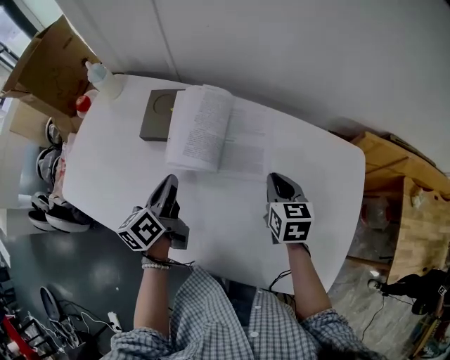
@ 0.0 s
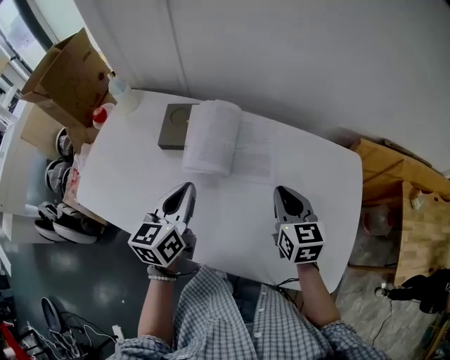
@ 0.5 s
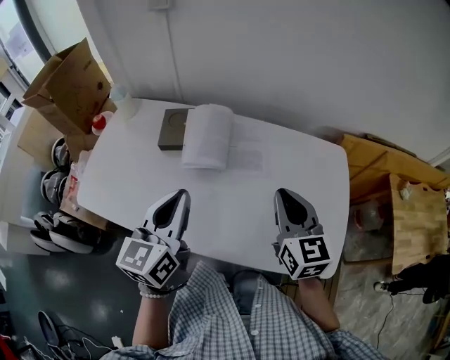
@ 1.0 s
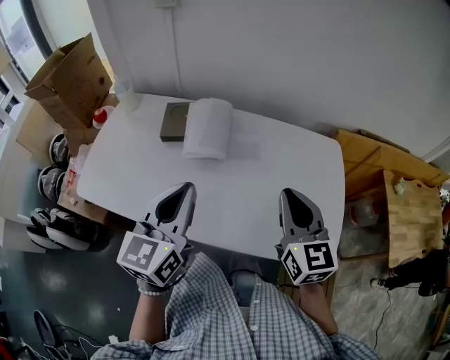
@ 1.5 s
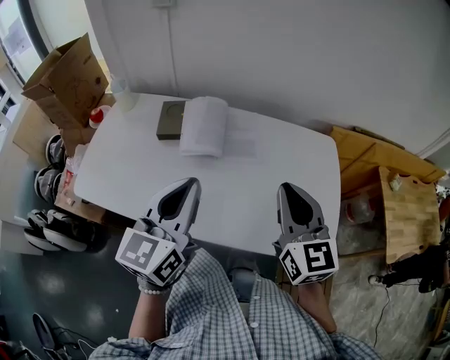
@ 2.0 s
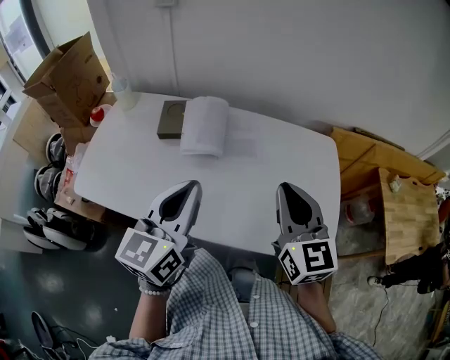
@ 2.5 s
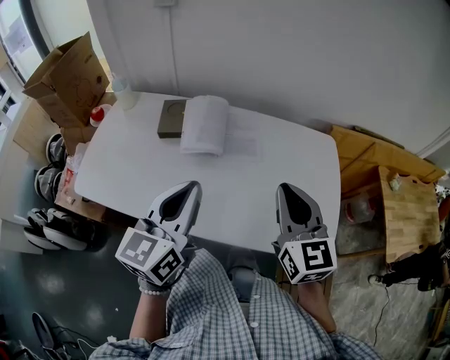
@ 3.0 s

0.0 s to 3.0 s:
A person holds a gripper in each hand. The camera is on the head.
0.0 to 1.5 s: Both grippers move upward and backward, about 25 cm. The left gripper changes its angle by about 40 degrees, while the right gripper changes its angle by about 30 degrees.
1.5 to 3.0 s: The grippers move only a little.

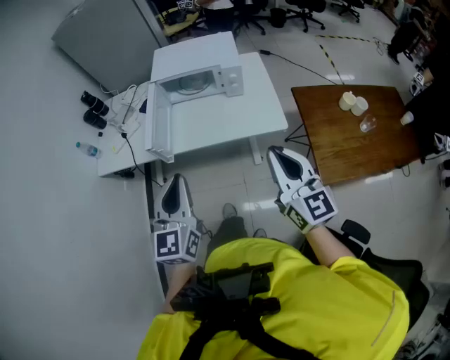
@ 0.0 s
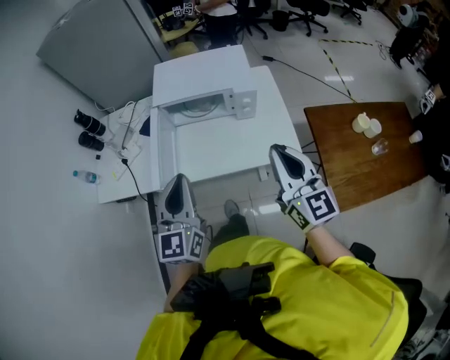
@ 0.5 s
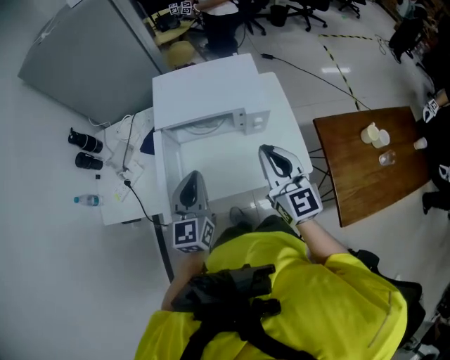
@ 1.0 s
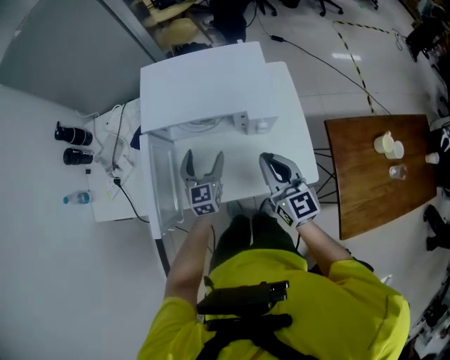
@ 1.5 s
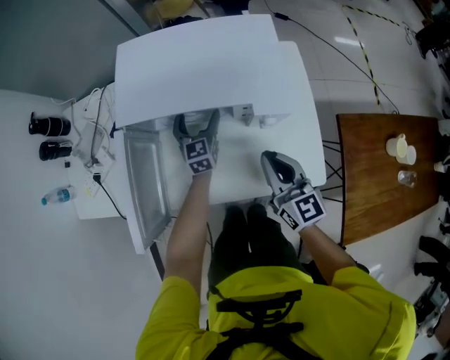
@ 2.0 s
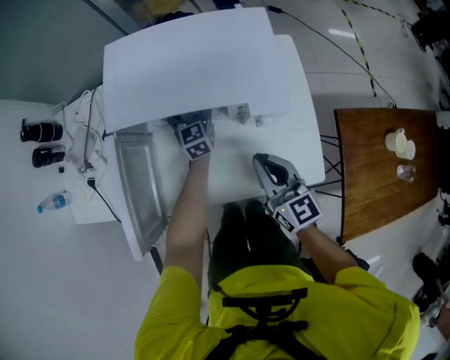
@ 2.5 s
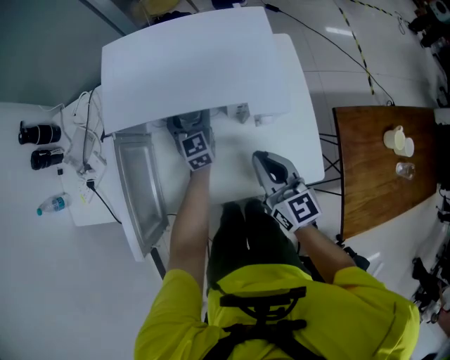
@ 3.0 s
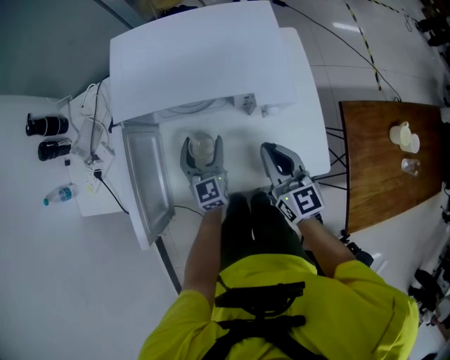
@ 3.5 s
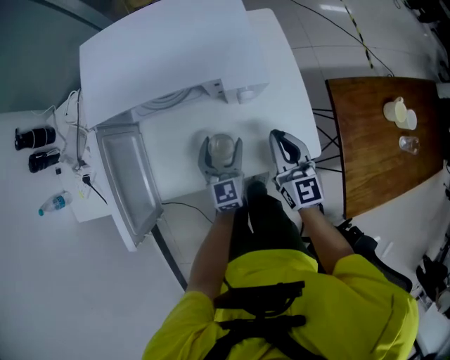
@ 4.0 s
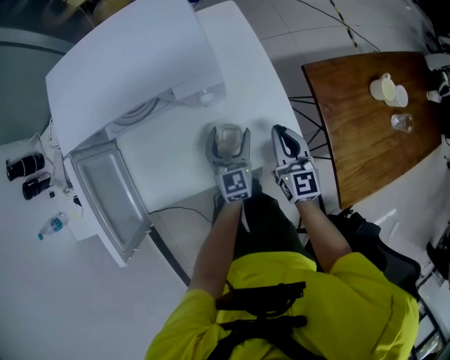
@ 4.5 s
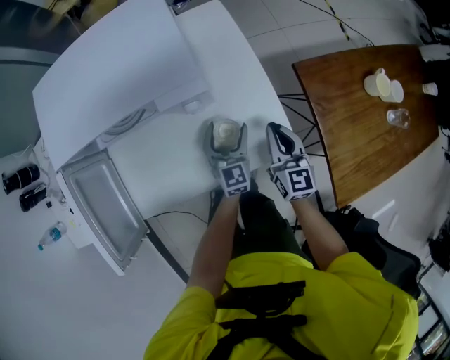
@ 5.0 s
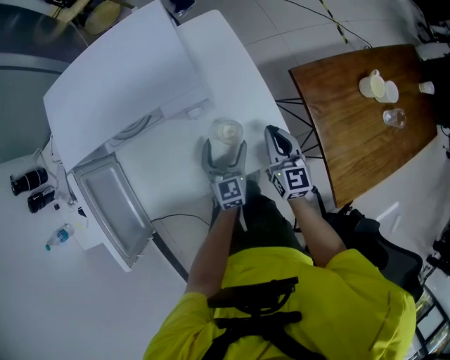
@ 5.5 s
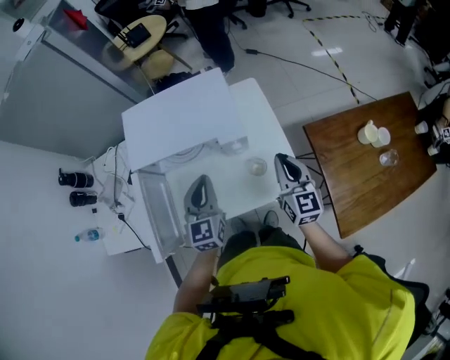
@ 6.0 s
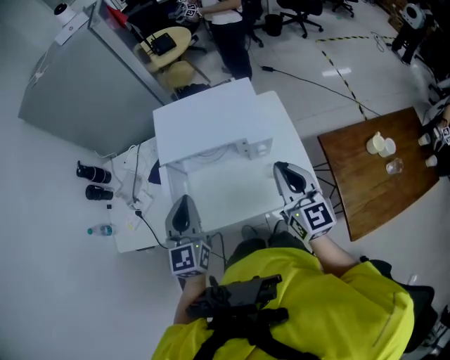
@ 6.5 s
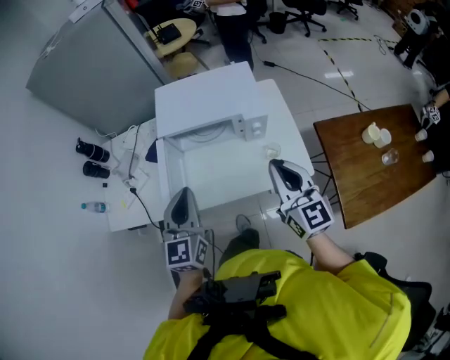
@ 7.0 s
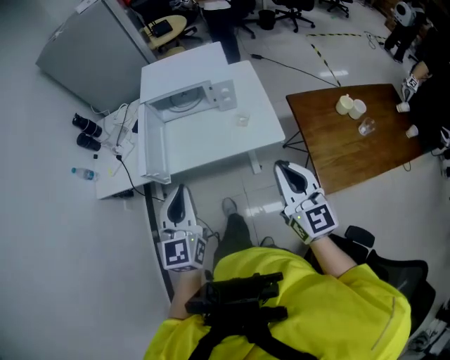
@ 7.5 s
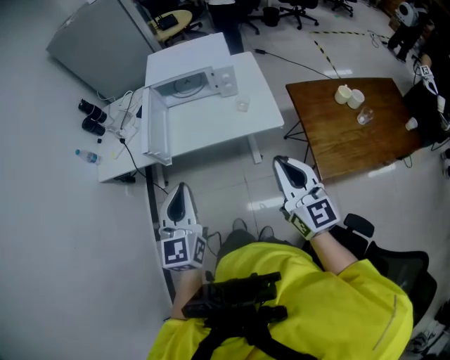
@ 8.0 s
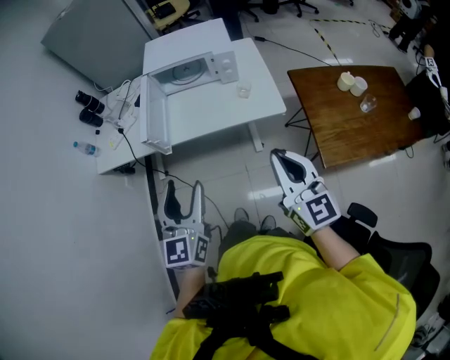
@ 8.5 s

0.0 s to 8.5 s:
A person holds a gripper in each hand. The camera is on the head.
0.0 to 2.0 s: The two grippers travel together, forward, some 50 cm. Both grippers travel together downward, approximately 30 cm. The left gripper opens.
2.0 to 4.0 s: The right gripper is displaced to the right and downward by about 10 cm, while the left gripper goes some 20 cm backward.
4.0 to 6.5 s: The left gripper moves upward and to the left, approximately 40 cm, and closes. Meanwhile the right gripper moves upward, approximately 30 cm.
6.5 to 8.5 s: Both grippers are carried backward, about 40 cm. The left gripper opens.

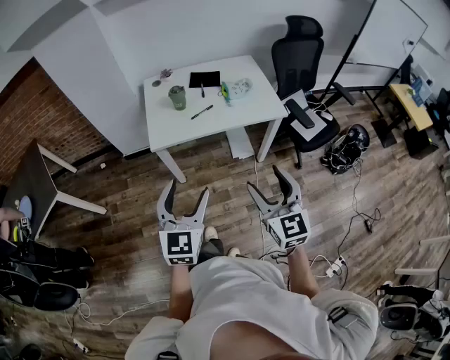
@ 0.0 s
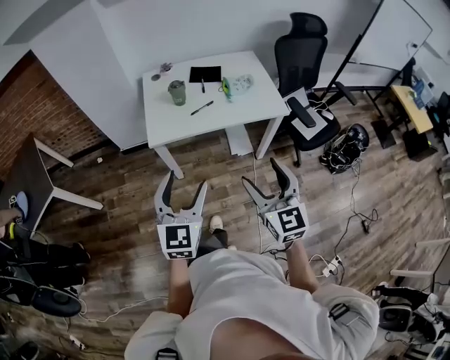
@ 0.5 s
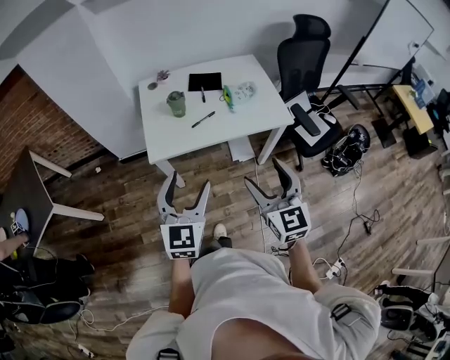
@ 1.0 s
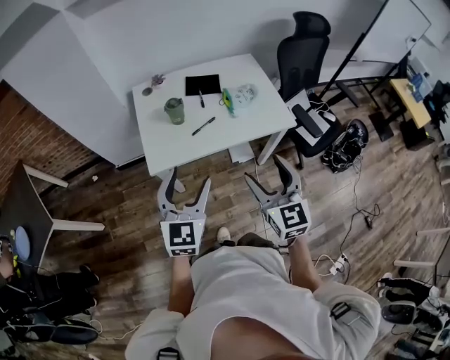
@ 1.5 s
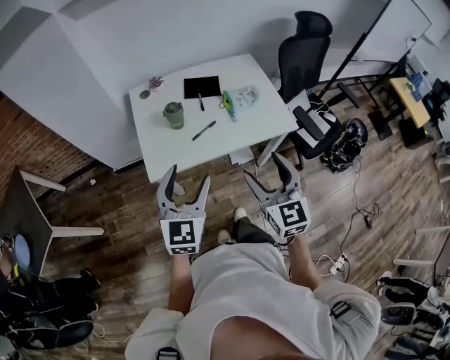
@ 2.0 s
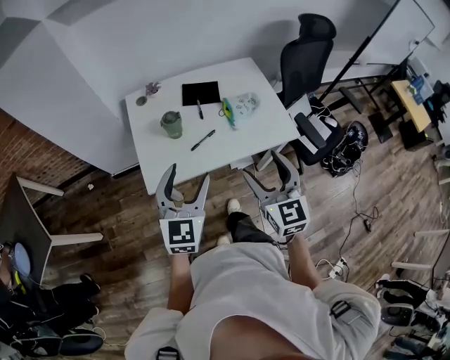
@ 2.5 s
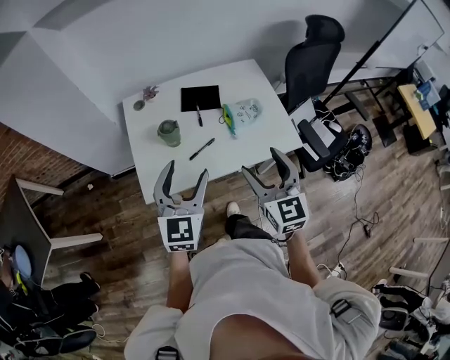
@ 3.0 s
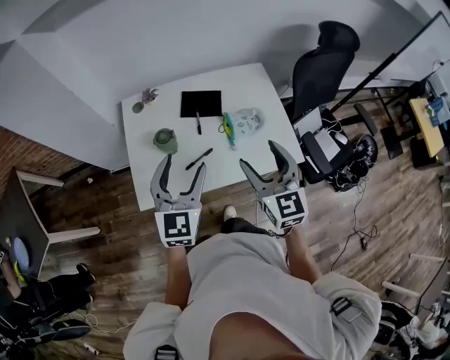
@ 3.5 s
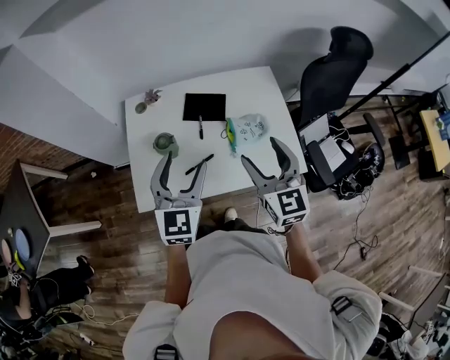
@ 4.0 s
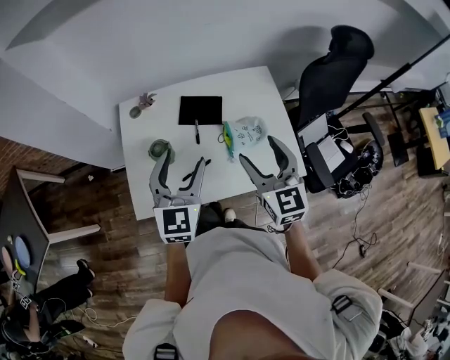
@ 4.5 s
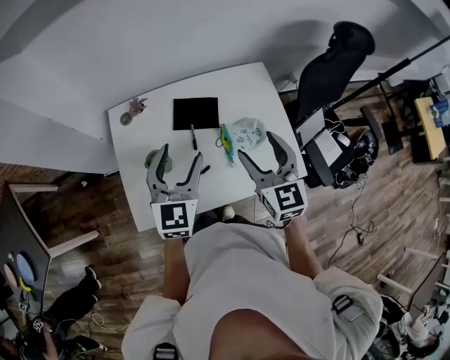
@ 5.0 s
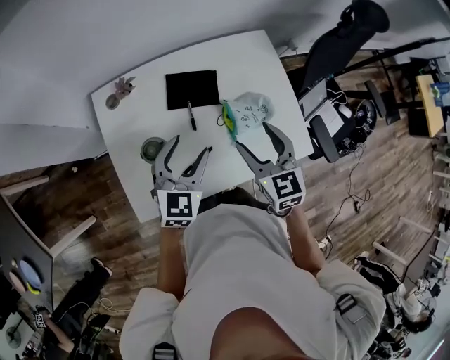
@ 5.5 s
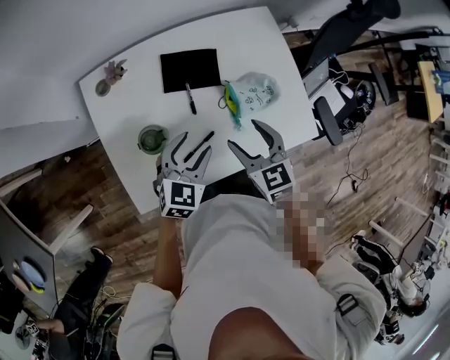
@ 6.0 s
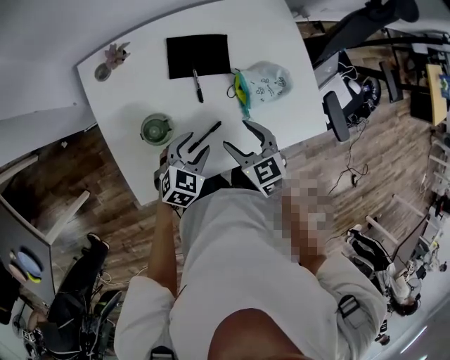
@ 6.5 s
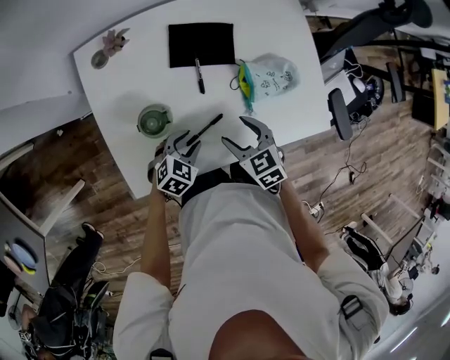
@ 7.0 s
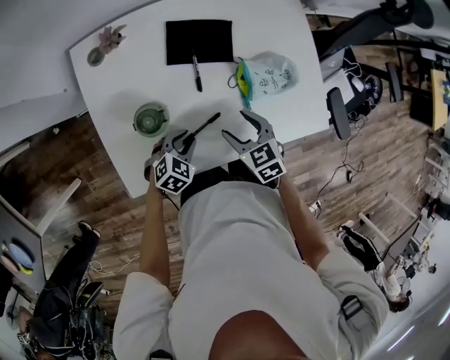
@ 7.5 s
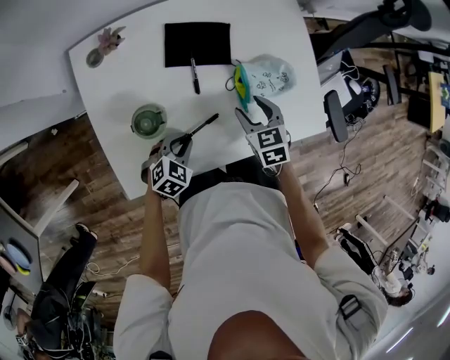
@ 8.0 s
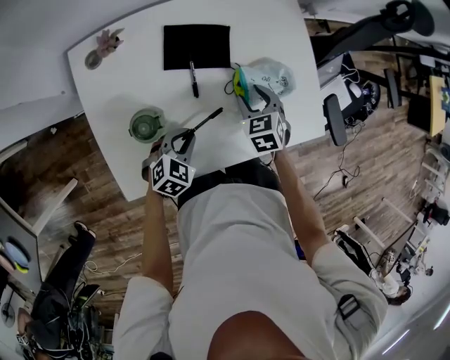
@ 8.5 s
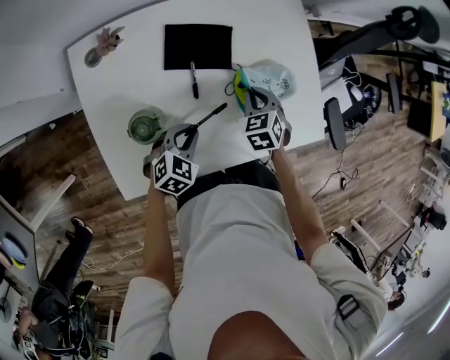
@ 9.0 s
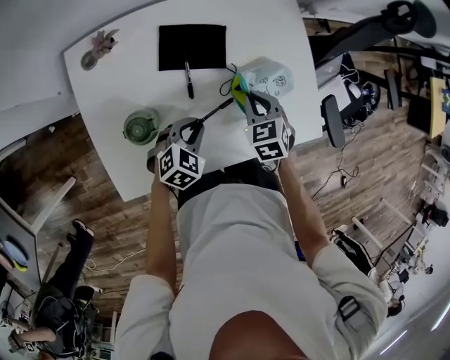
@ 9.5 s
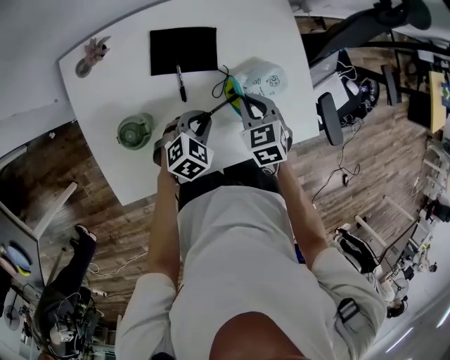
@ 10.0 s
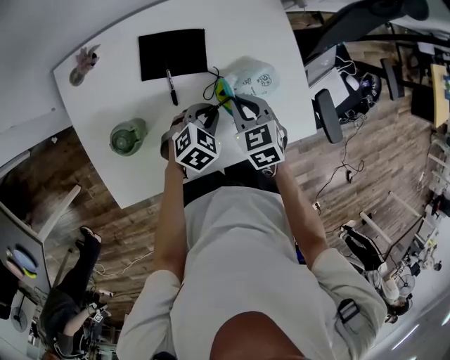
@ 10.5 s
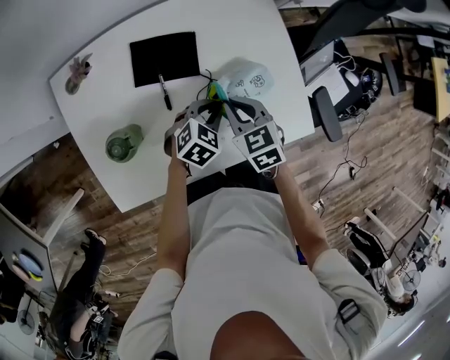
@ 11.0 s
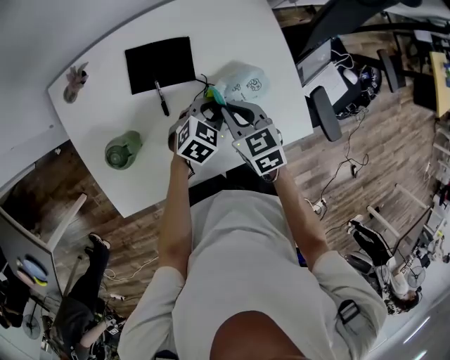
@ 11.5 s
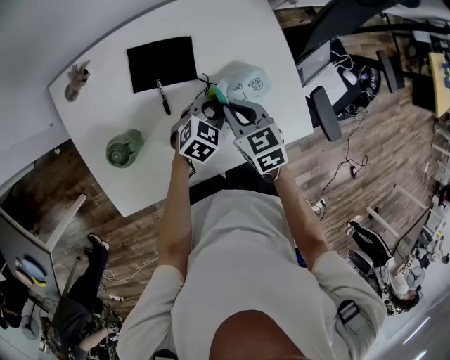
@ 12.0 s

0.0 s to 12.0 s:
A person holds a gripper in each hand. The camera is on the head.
0.0 to 2.0 s: The two grippers go some 25 cm forward.
2.0 to 4.0 s: Both grippers move forward, roughly 25 cm.
4.0 to 6.0 s: Both grippers travel together downward and forward, some 20 cm. The right gripper rotates some 30 degrees. Meanwhile the left gripper rotates some 40 degrees.
6.0 to 8.0 s: The grippers both shift downward by about 15 cm. The left gripper rotates about 20 degrees, and closes.
8.0 to 10.0 s: The right gripper ends up roughly 5 cm from where it was, and closes up. Meanwhile the left gripper moves forward and to the right, approximately 15 cm.
10.0 to 12.0 s: The left gripper goes some 10 cm to the right and forward.

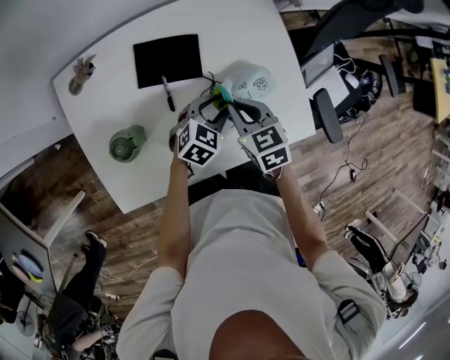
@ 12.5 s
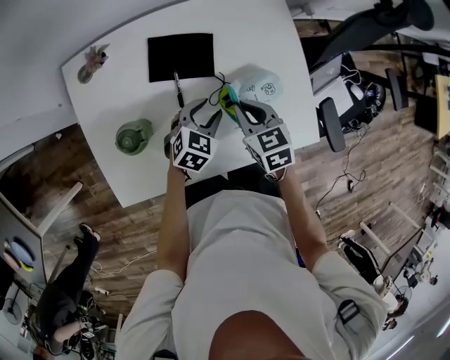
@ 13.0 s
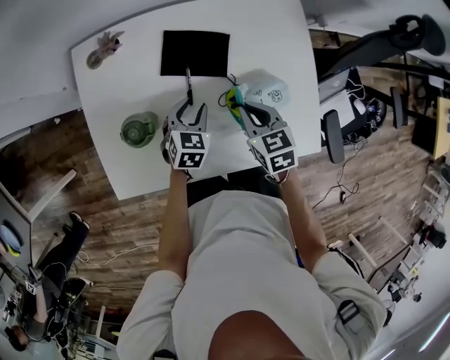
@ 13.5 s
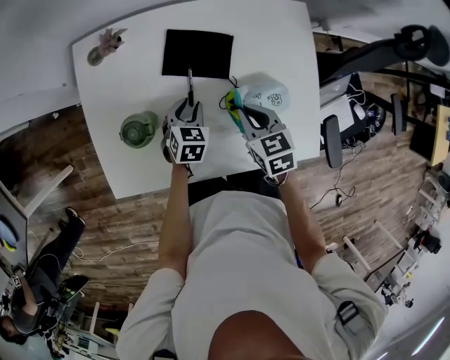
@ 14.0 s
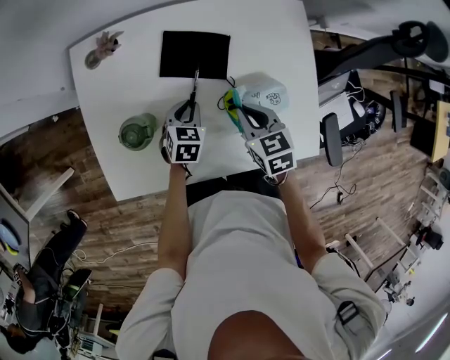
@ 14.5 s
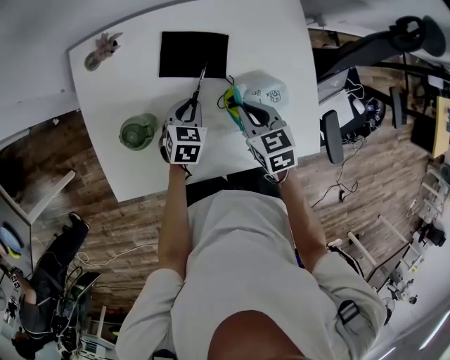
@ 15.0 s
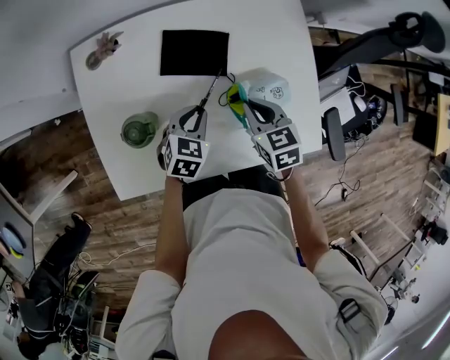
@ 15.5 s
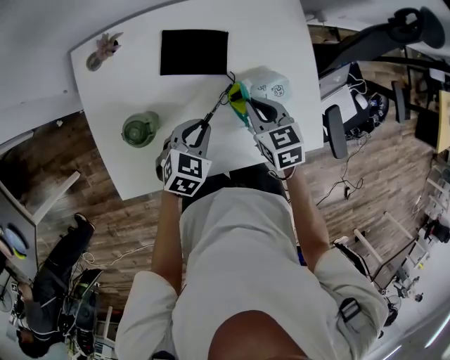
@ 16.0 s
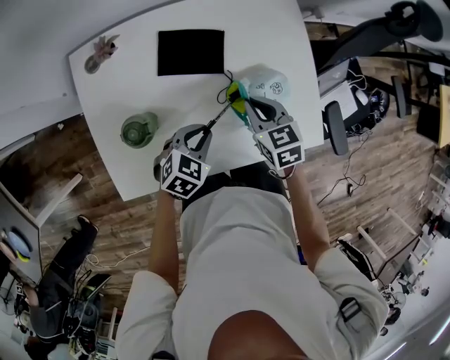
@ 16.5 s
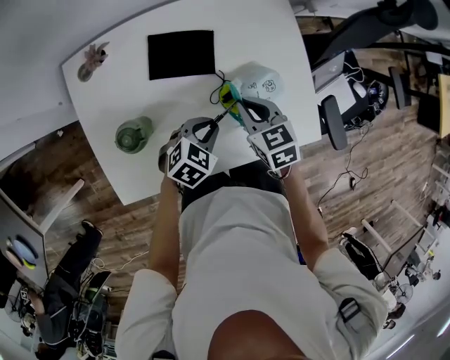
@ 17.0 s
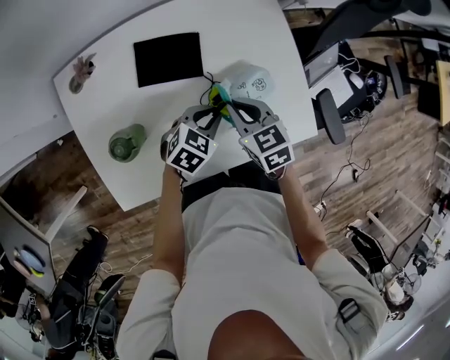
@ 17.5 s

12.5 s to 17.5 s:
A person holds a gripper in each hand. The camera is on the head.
12.5 to 15.0 s: The left gripper shifts roughly 15 cm to the left, and rotates about 30 degrees.
15.0 to 17.5 s: The left gripper goes approximately 10 cm to the right, and turns by some 30 degrees.
